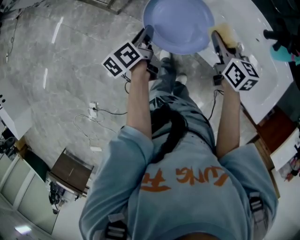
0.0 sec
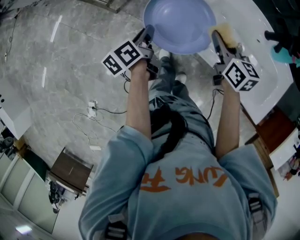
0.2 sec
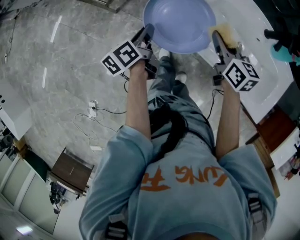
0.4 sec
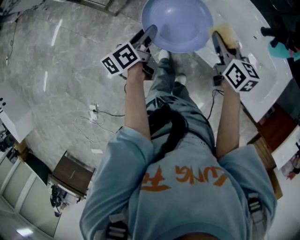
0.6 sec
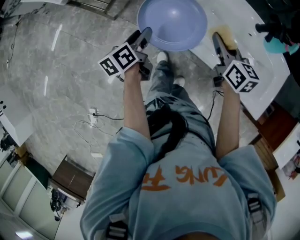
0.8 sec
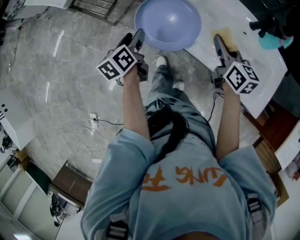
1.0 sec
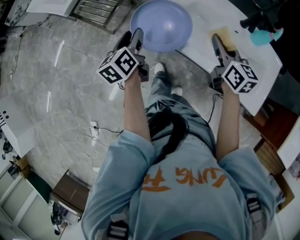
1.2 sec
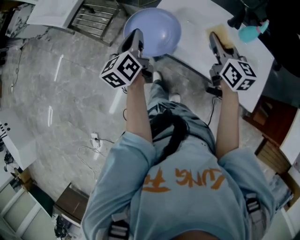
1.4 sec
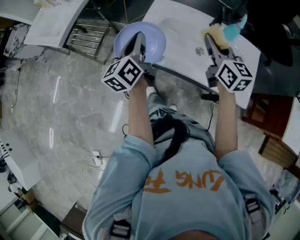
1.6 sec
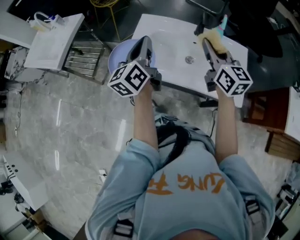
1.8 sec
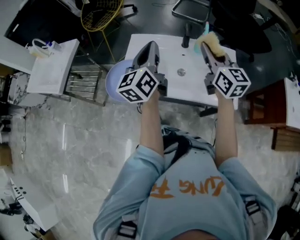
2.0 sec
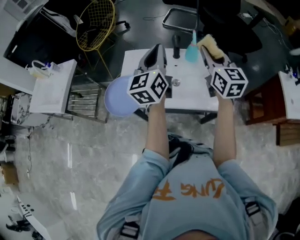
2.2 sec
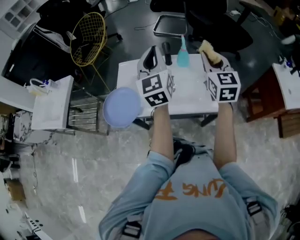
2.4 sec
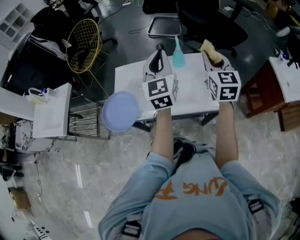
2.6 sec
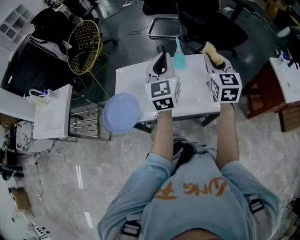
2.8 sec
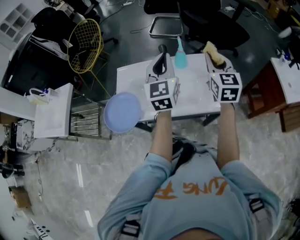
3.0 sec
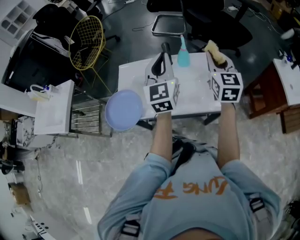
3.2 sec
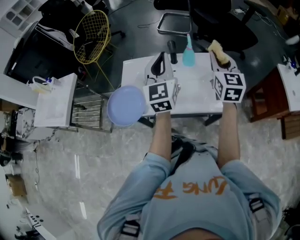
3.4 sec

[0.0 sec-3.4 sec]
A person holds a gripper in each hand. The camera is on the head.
0.0 sec to 1.6 sec: The two grippers go approximately 20 cm upward and to the right. The right gripper turns by about 20 degrees. The left gripper turns by roughly 40 degrees, and opens and closes again.
1.6 sec to 3.4 sec: The left gripper ends up some 30 cm from where it was, and changes its angle by about 40 degrees. Meanwhile the right gripper ends up approximately 25 cm from where it was, and changes its angle by approximately 40 degrees.

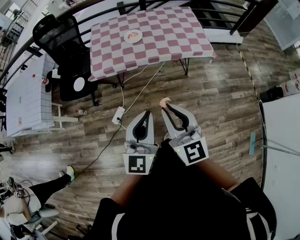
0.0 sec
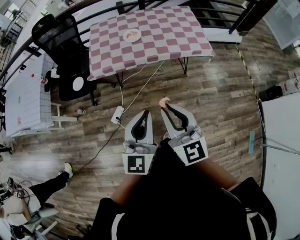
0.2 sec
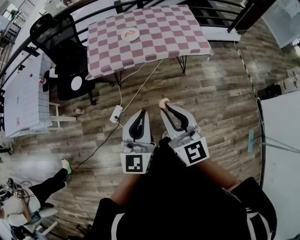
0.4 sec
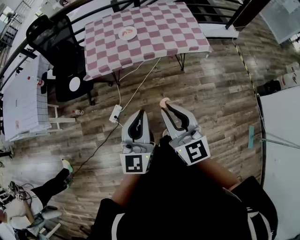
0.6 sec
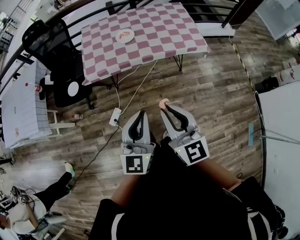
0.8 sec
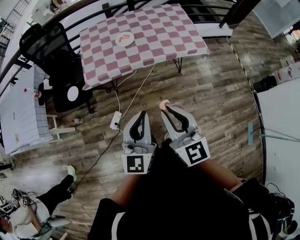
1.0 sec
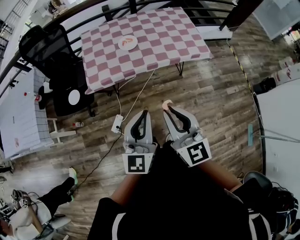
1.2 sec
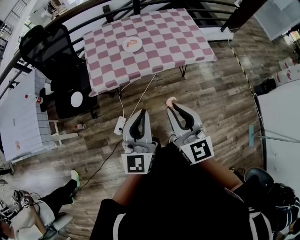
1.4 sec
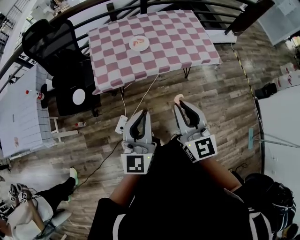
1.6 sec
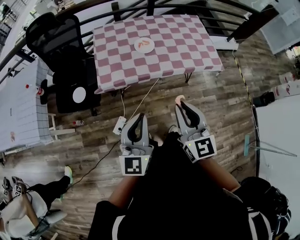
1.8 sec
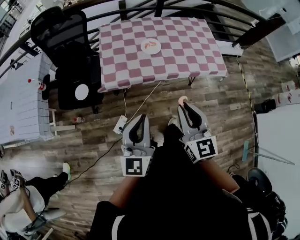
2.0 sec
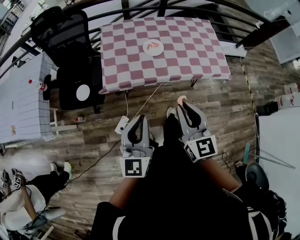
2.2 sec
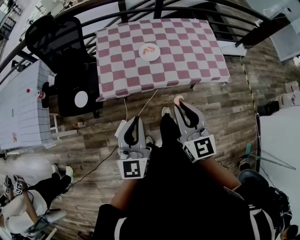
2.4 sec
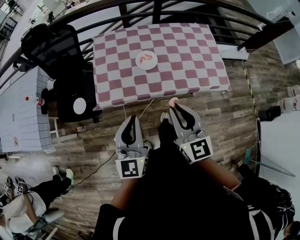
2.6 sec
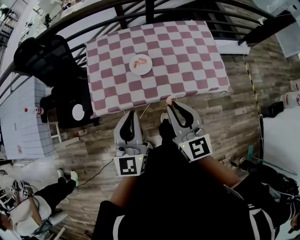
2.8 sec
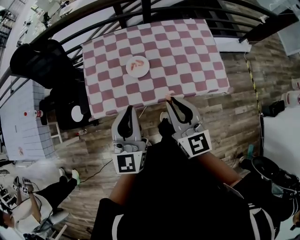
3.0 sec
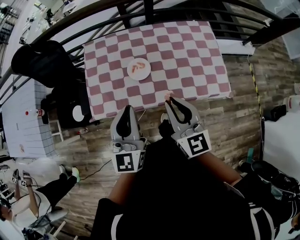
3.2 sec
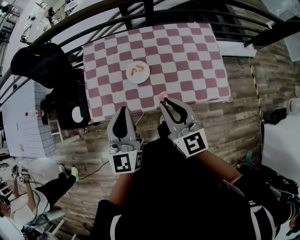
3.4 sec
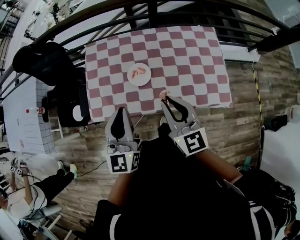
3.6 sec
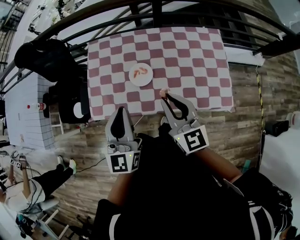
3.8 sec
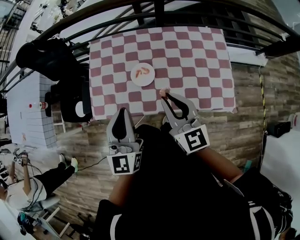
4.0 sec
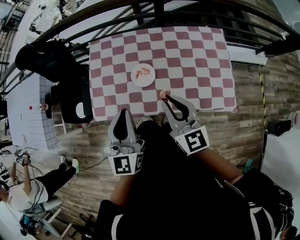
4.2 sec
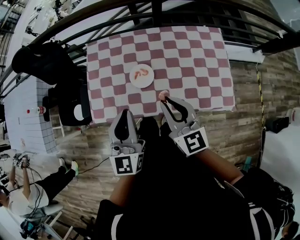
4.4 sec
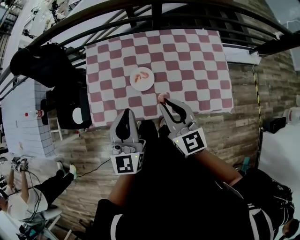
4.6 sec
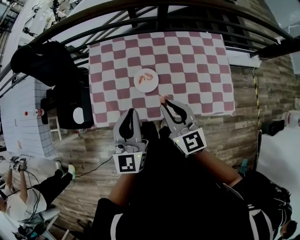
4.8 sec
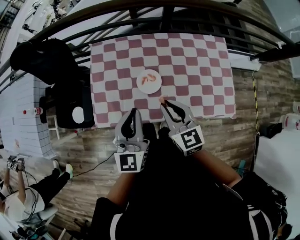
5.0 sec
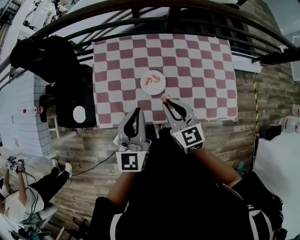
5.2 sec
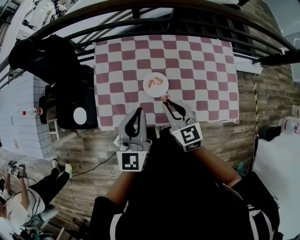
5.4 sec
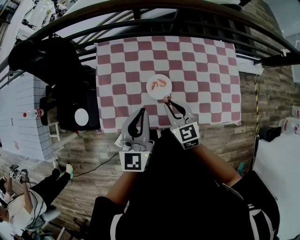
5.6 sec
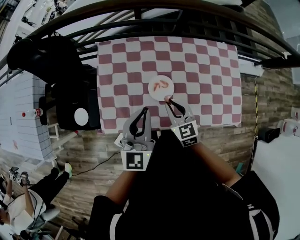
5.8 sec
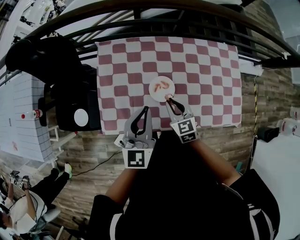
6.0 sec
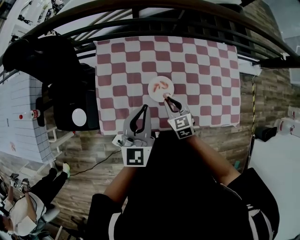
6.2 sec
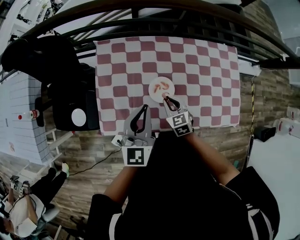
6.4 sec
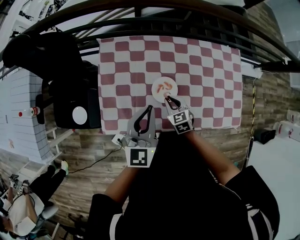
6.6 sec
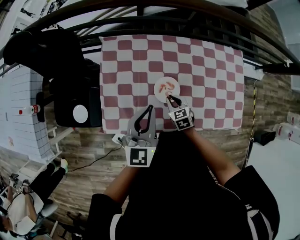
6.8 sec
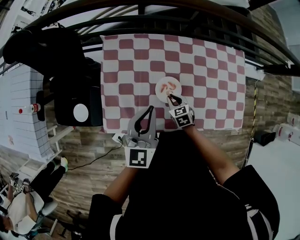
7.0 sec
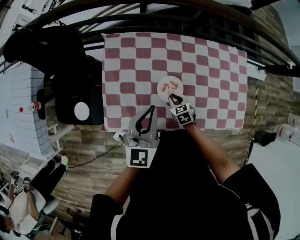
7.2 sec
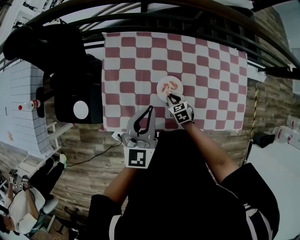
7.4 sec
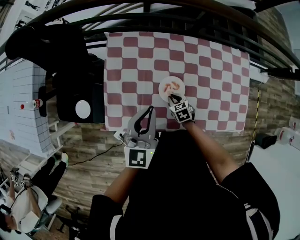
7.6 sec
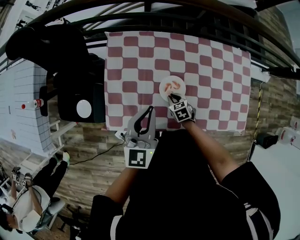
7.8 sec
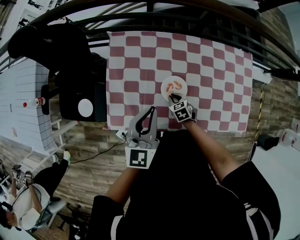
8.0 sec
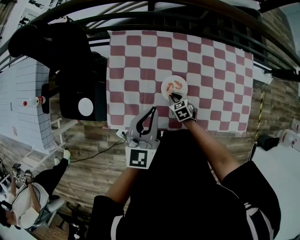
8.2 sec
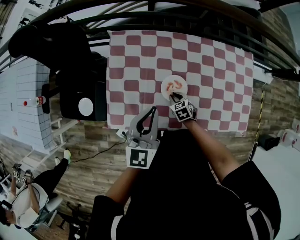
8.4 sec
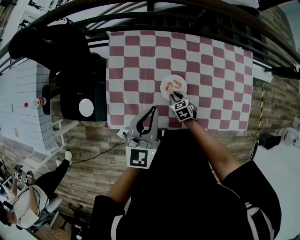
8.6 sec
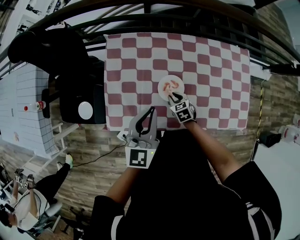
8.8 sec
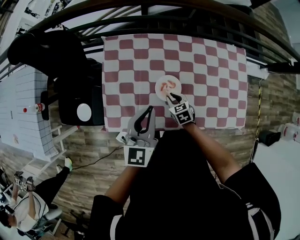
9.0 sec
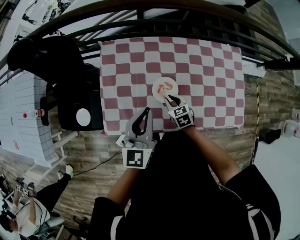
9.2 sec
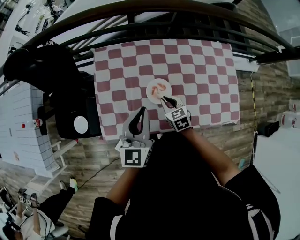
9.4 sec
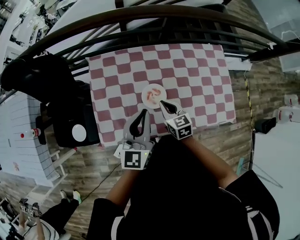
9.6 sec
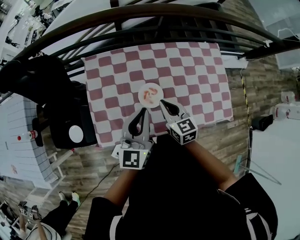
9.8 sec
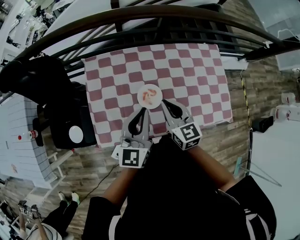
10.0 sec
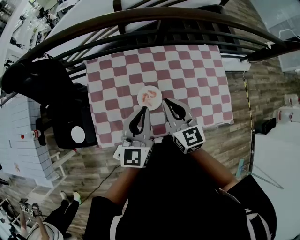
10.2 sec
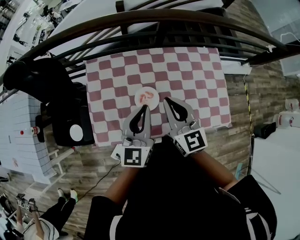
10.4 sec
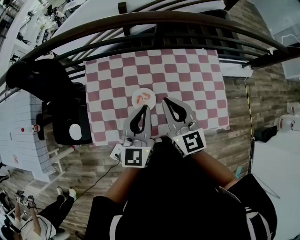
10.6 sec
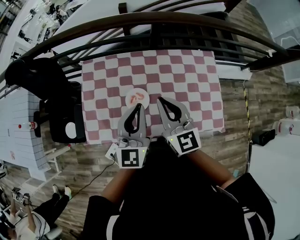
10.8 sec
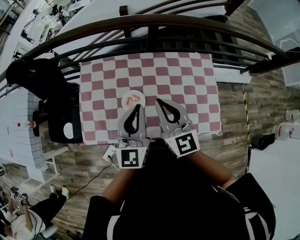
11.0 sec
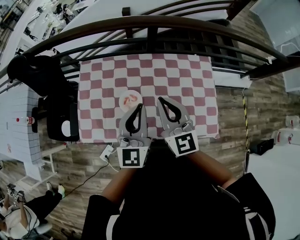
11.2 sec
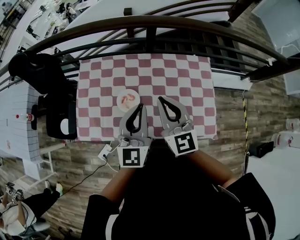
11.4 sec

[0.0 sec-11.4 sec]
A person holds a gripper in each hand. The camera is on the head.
0.0 sec to 1.4 sec: The two grippers go roughly 15 cm forward and to the left.
1.4 sec to 2.8 sec: Both grippers travel together forward, some 25 cm.
2.8 sec to 4.2 sec: The two grippers go some 15 cm forward and to the right.
4.2 sec to 5.6 sec: The left gripper shifts roughly 15 cm forward, downward and to the left. The right gripper heads downward, to the left and forward, covering about 20 cm, and swivels some 20 degrees.
5.6 sec to 7.2 sec: The right gripper travels downward by about 20 cm, and changes its angle by approximately 30 degrees, while the left gripper shifts by approximately 5 cm.
7.2 sec to 8.6 sec: The grippers move only a little.
8.6 sec to 10.0 sec: The left gripper moves to the right, roughly 5 cm; the right gripper moves upward, about 30 cm, and points its fingers roughly 40 degrees further upward.
10.0 sec to 11.4 sec: The left gripper travels to the right by roughly 15 cm, while the right gripper heads to the right and upward, covering some 20 cm, and turns by approximately 20 degrees.

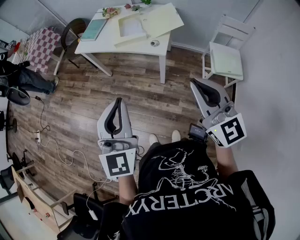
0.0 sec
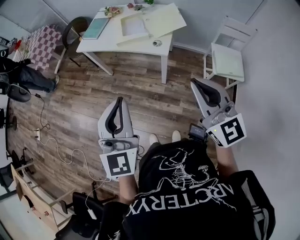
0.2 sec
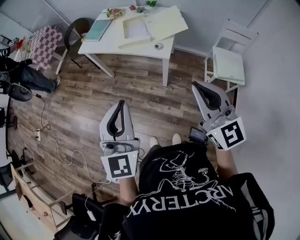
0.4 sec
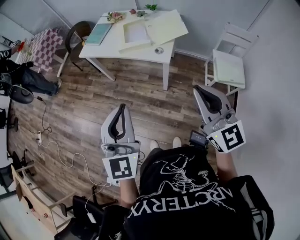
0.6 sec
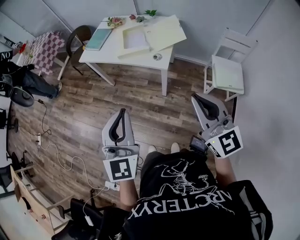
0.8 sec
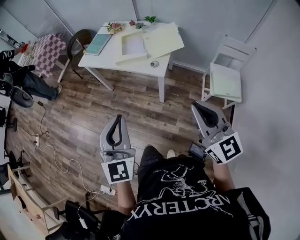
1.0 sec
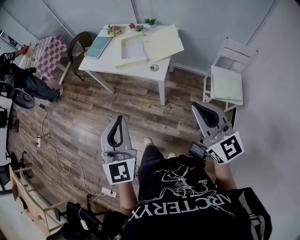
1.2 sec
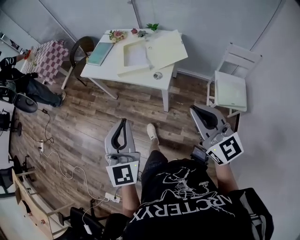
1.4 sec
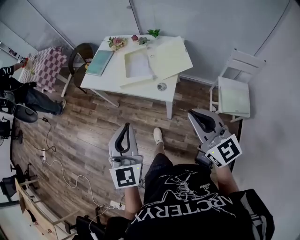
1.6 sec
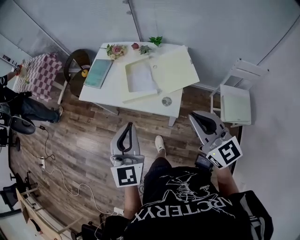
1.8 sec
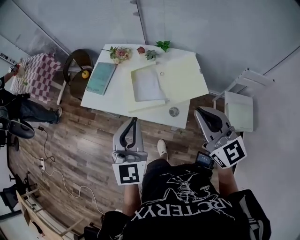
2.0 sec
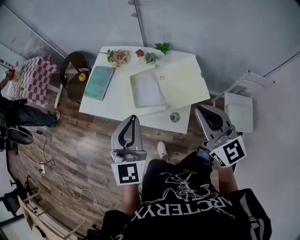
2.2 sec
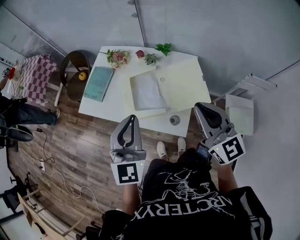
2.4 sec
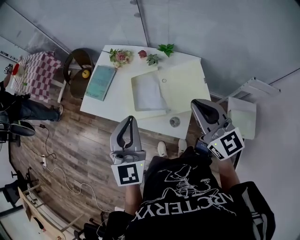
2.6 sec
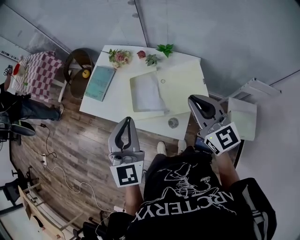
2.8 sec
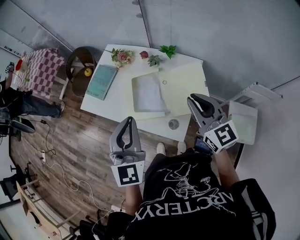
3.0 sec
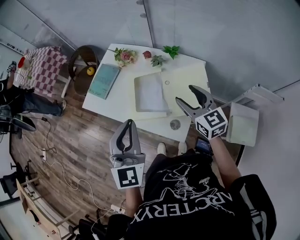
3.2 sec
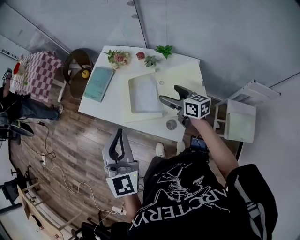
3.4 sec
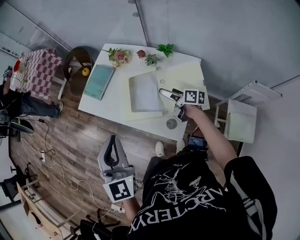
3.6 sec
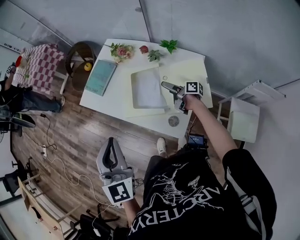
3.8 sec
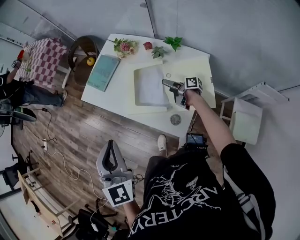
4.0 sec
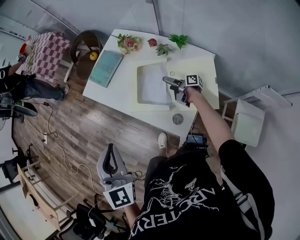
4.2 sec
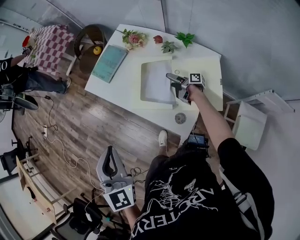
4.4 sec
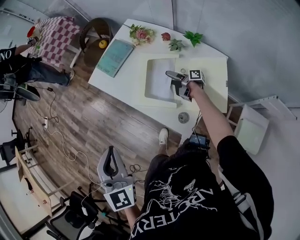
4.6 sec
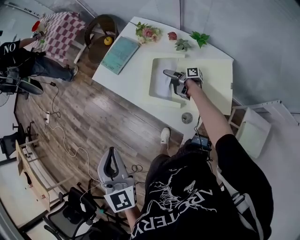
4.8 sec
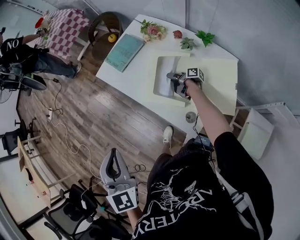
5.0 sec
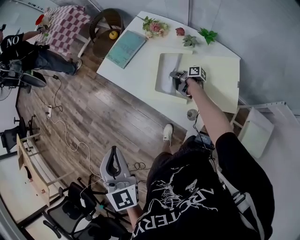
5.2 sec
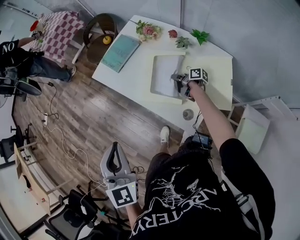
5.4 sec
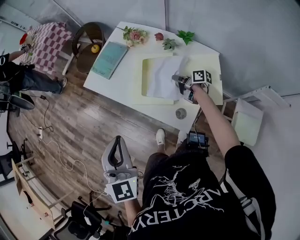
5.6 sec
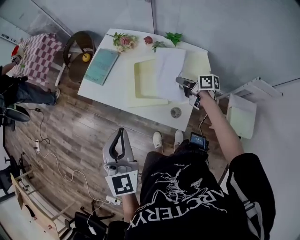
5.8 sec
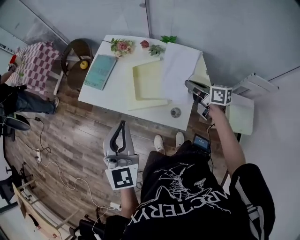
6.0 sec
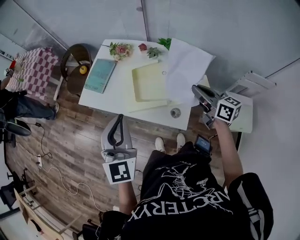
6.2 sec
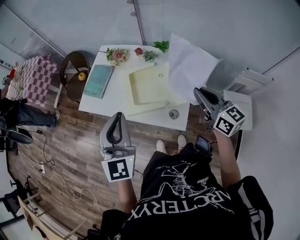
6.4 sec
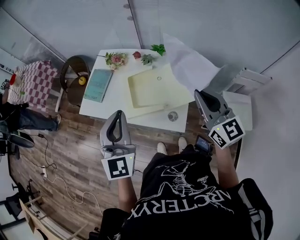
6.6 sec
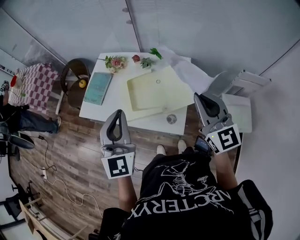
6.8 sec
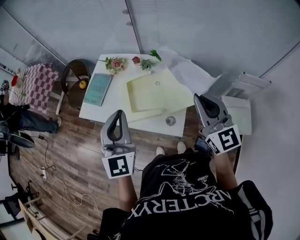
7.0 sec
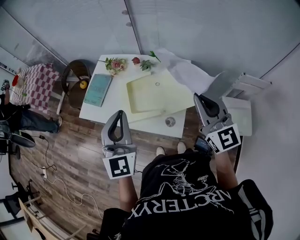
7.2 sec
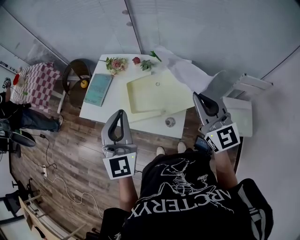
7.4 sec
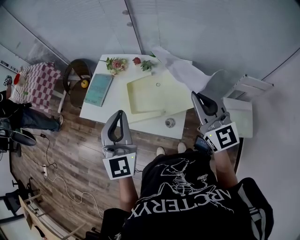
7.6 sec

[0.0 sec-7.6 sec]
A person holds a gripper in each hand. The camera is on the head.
0.0 sec to 1.6 sec: The two grippers go some 15 cm forward.
1.6 sec to 3.0 sec: Both grippers travel together forward, some 35 cm.
3.0 sec to 4.6 sec: The right gripper is displaced downward by about 35 cm, rolls clockwise, seen from behind, by roughly 90 degrees, and opens its fingers; the left gripper ends up approximately 15 cm from where it was, and swivels roughly 30 degrees.
4.6 sec to 6.0 sec: The right gripper moves upward, some 20 cm, rotates around the line of its fingers by roughly 40 degrees, counterclockwise from behind, and closes its fingers. Meanwhile the left gripper turns by about 30 degrees.
6.0 sec to 7.6 sec: The left gripper goes about 10 cm to the right and upward. Meanwhile the right gripper is displaced upward and backward by roughly 25 cm, and rolls counterclockwise, seen from behind, by some 60 degrees.

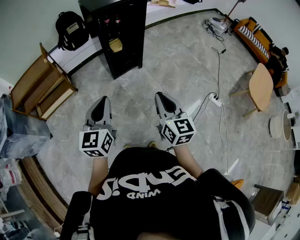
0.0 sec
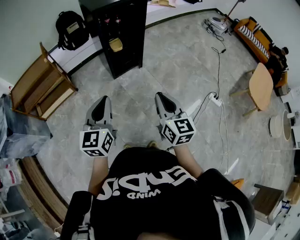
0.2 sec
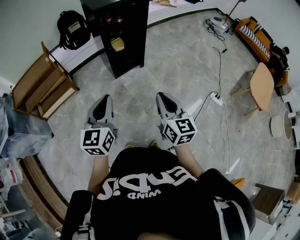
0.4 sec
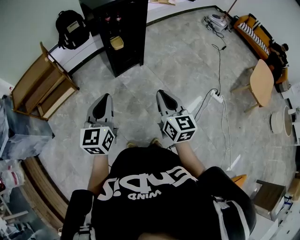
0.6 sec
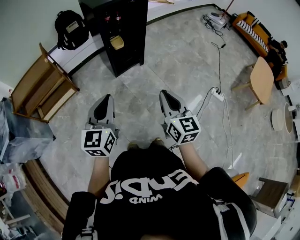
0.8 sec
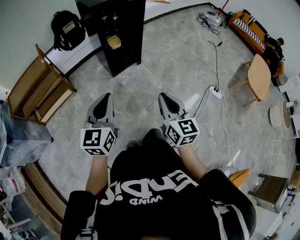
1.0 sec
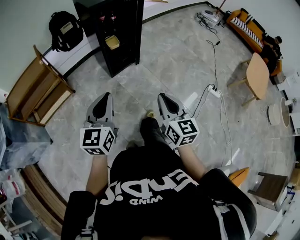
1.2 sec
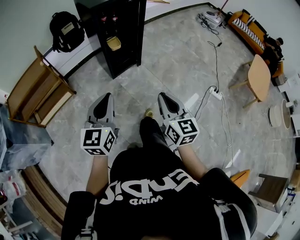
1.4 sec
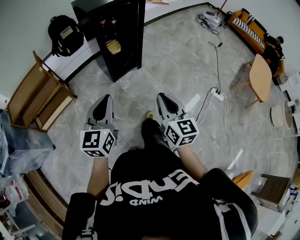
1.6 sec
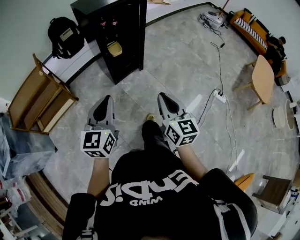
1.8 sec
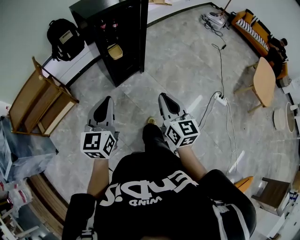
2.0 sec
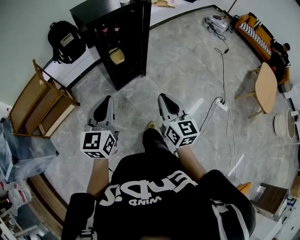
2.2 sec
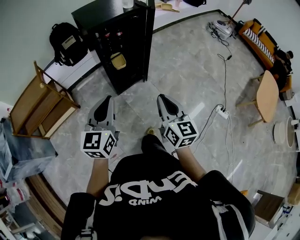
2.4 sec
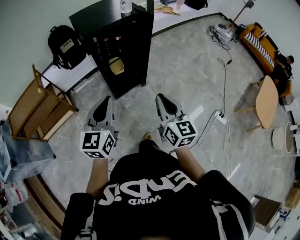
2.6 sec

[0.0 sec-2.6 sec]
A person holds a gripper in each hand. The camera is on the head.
0.0 sec to 1.2 sec: The right gripper moves about 5 cm.
1.2 sec to 2.6 sec: Both grippers move forward, roughly 25 cm.
